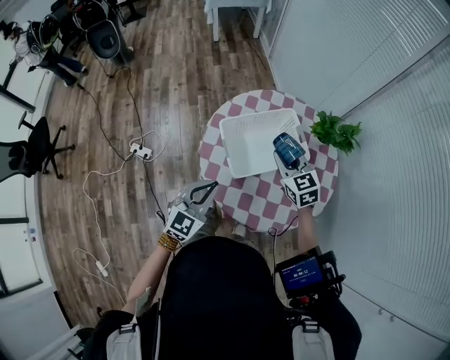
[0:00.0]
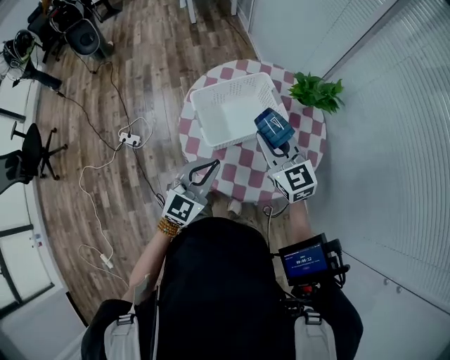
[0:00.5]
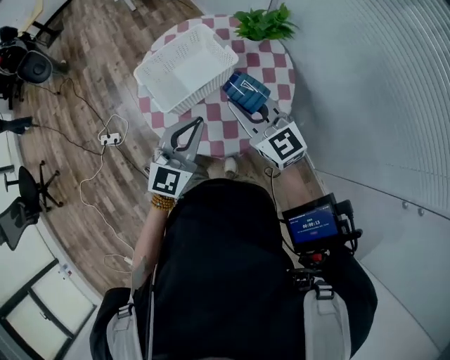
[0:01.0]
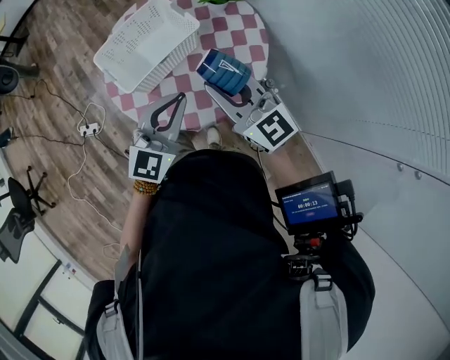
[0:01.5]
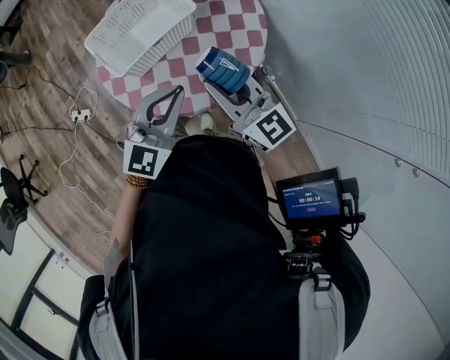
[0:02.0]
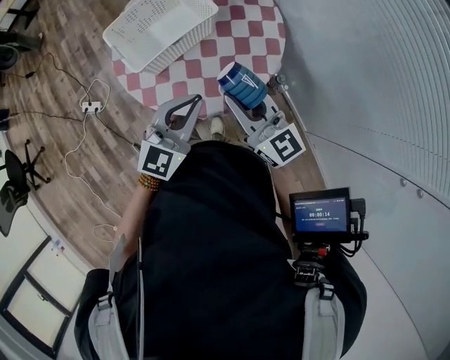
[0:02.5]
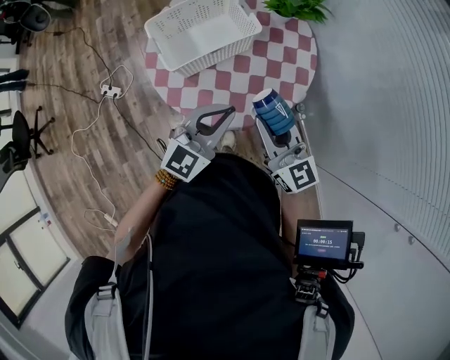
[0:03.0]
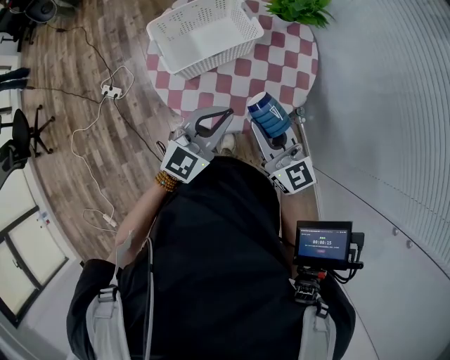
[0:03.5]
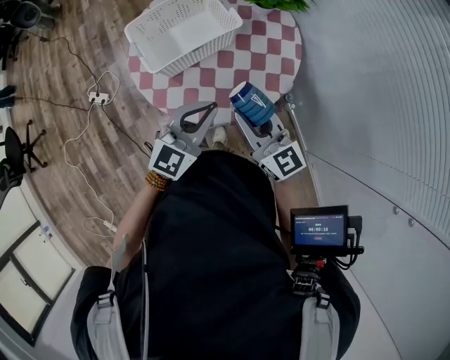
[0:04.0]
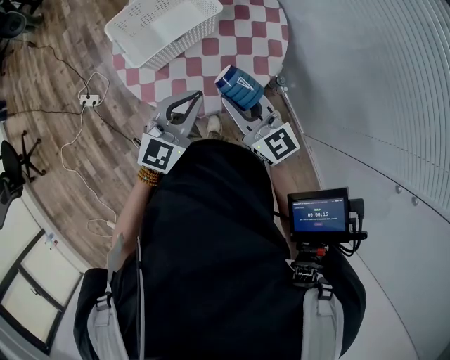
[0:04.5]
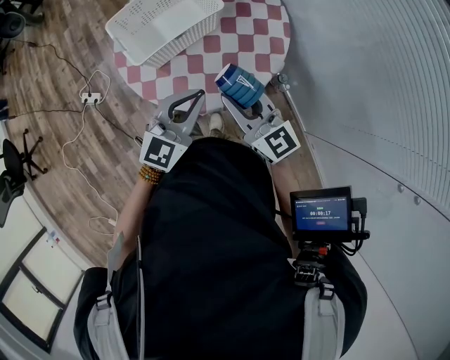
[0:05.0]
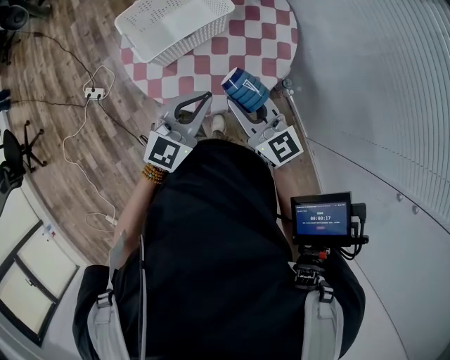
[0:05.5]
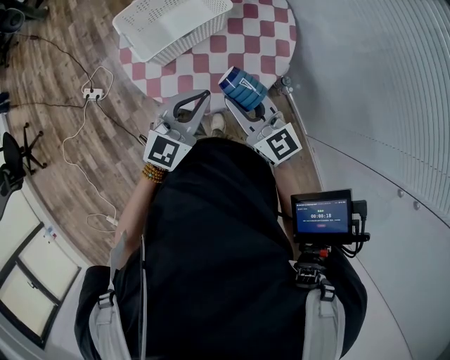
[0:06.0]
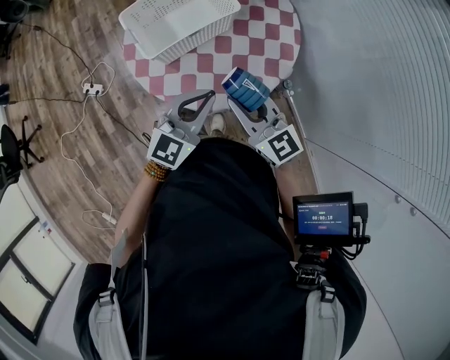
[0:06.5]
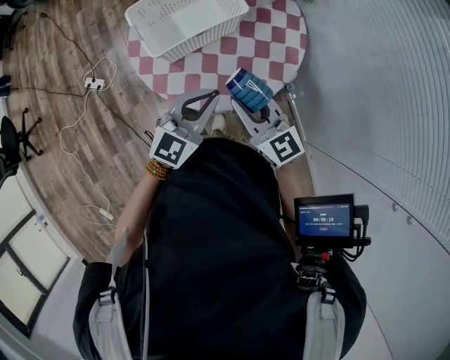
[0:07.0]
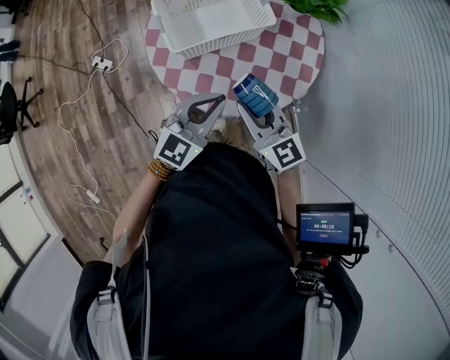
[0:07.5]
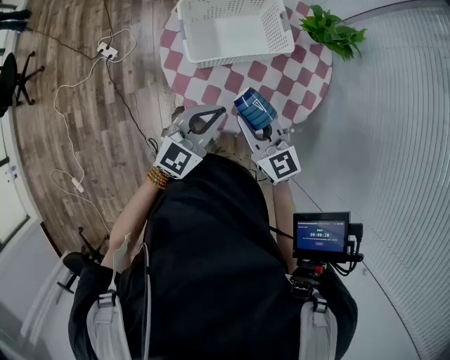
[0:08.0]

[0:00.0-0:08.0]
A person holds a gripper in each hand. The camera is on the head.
0:00.0 to 0:02.0: The left gripper goes approximately 25 cm to the right, and swivels about 20 degrees; the right gripper moves backward and to the right, some 30 cm, and swivels approximately 30 degrees.
0:02.0 to 0:06.0: The grippers move only a little.
0:06.0 to 0:08.0: The grippers both shift to the left by some 10 cm.

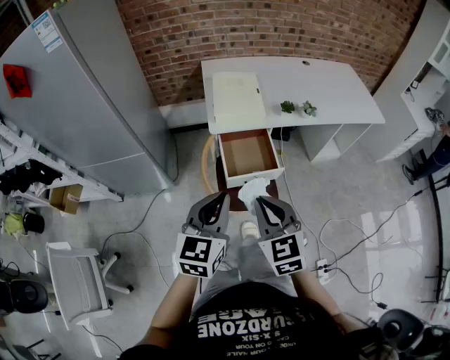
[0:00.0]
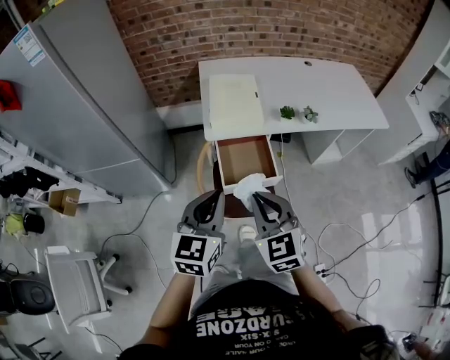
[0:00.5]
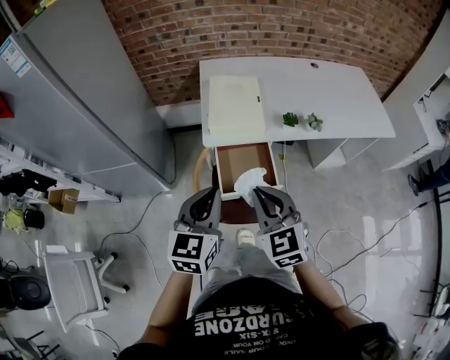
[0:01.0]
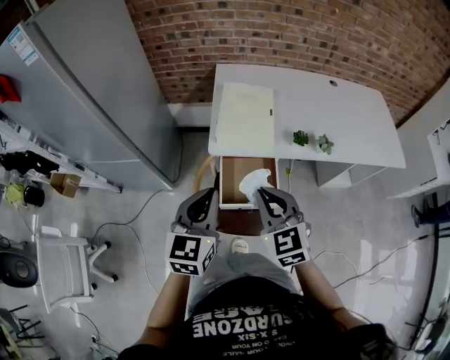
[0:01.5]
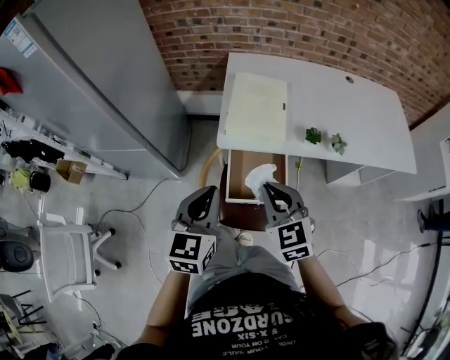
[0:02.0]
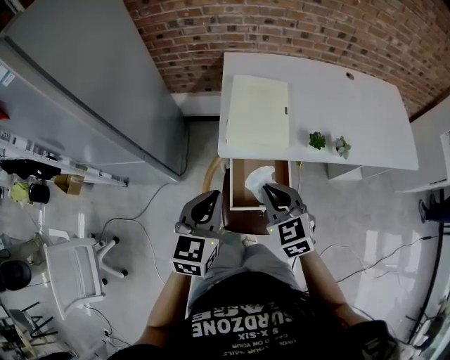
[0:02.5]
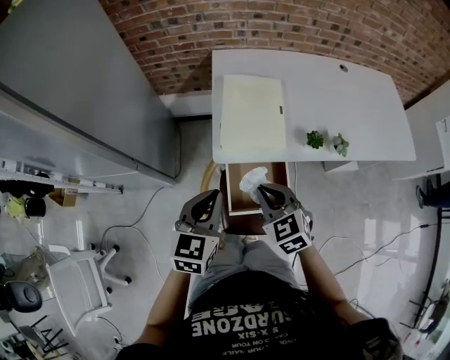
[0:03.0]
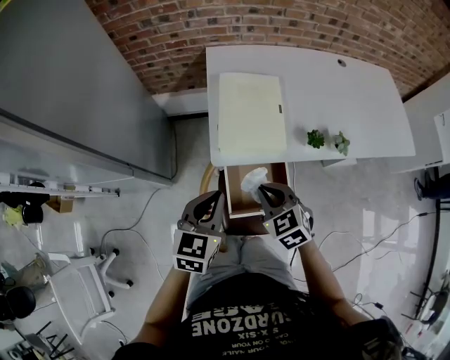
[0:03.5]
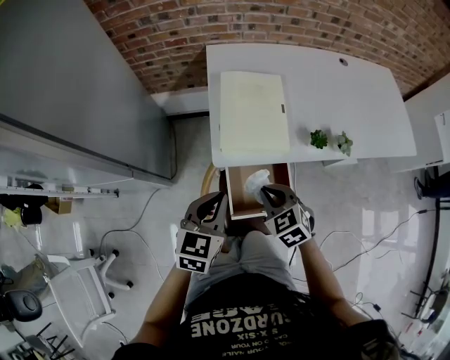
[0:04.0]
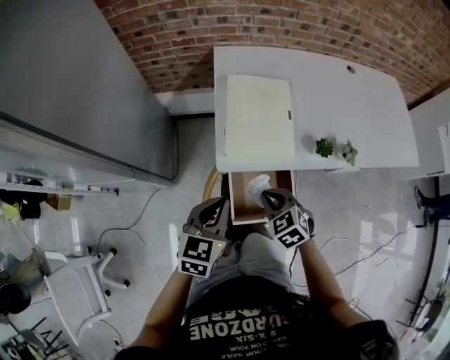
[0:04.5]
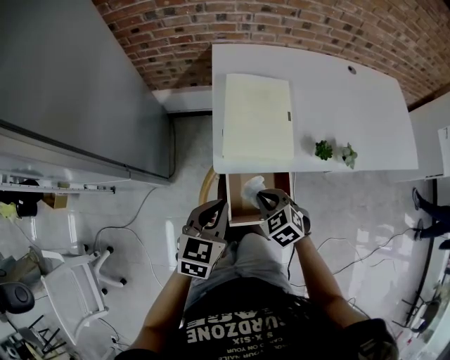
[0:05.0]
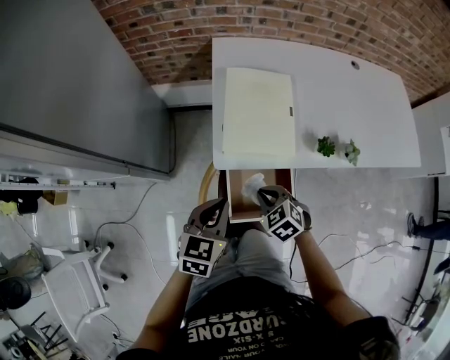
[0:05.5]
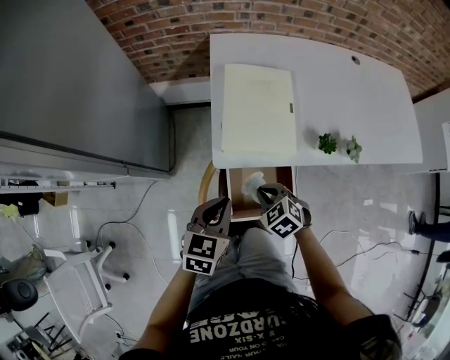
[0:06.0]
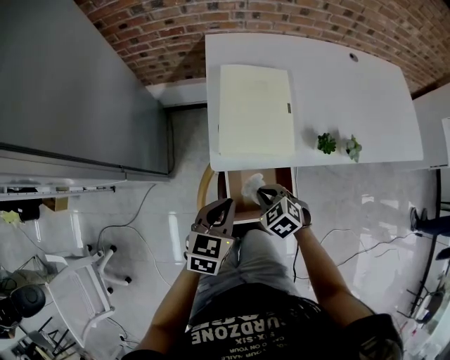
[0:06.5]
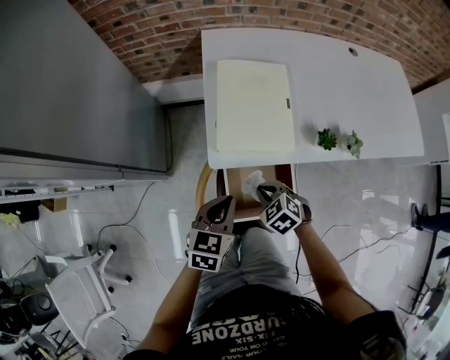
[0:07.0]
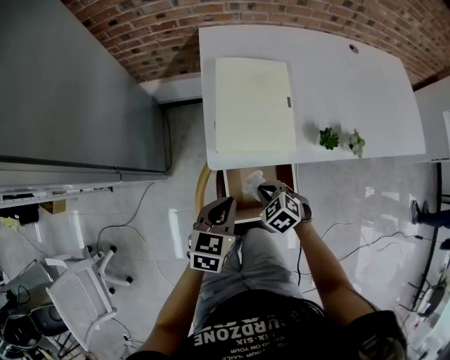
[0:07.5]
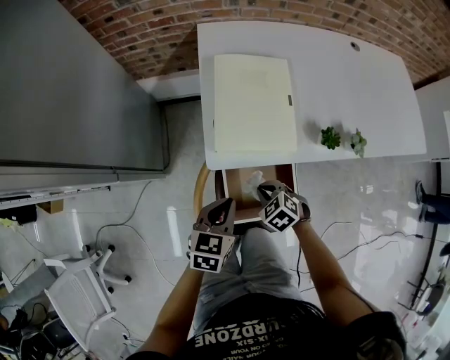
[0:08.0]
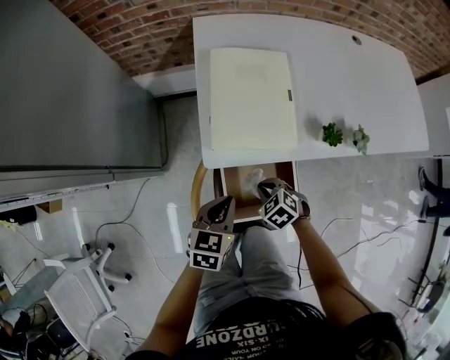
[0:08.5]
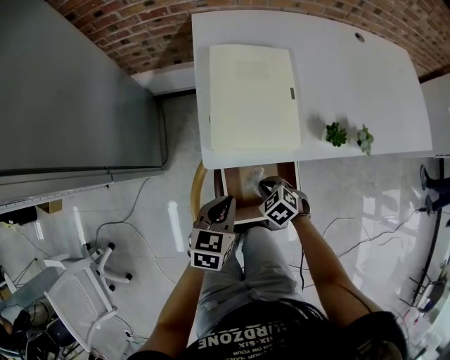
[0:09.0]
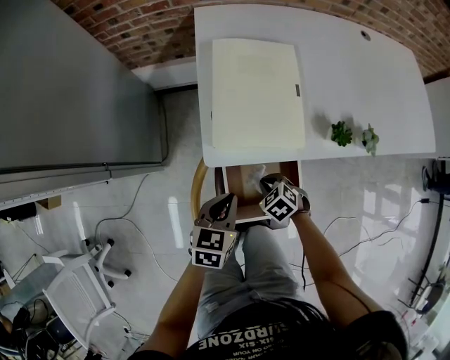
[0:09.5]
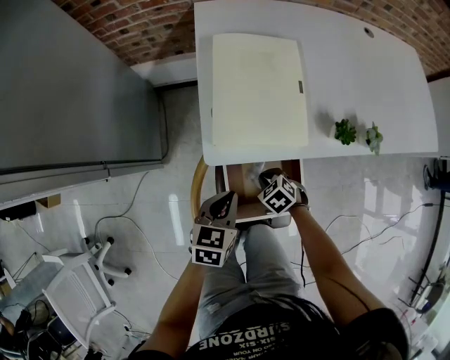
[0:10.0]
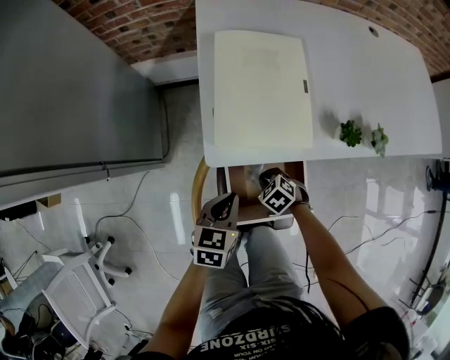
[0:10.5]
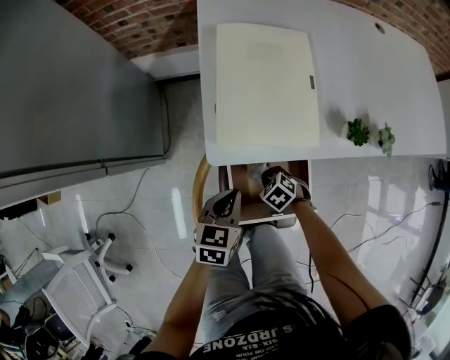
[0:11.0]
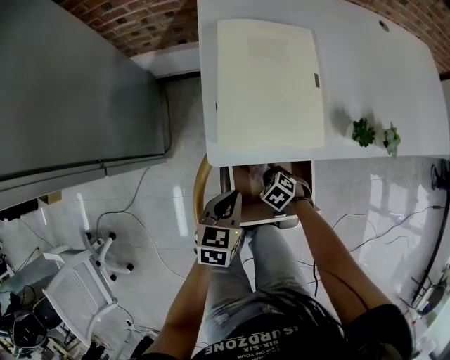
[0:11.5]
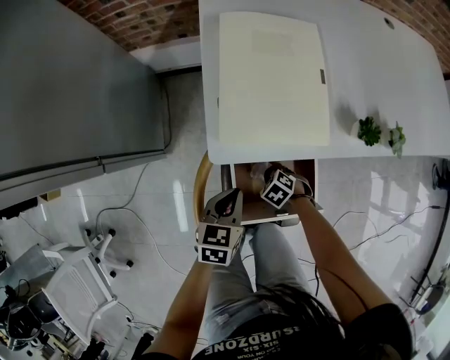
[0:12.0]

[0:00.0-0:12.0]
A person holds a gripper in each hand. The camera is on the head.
0:00.0 to 0:02.0: The two grippers go roughly 20 cm forward.
0:02.0 to 0:04.0: The right gripper shifts approximately 15 cm downward and forward, and swivels approximately 20 degrees, while the left gripper heads forward and downward, covering some 15 cm.
0:04.0 to 0:06.0: The left gripper shifts approximately 5 cm downward, while the right gripper moves downward, approximately 10 cm.
0:06.0 to 0:08.0: Both grippers move downward, about 10 cm.
0:08.0 to 0:10.0: The left gripper travels downward by some 5 cm. Meanwhile the right gripper moves downward, approximately 10 cm.
0:10.0 to 0:12.0: The left gripper shifts roughly 5 cm downward, while the right gripper heads downward, covering approximately 10 cm.

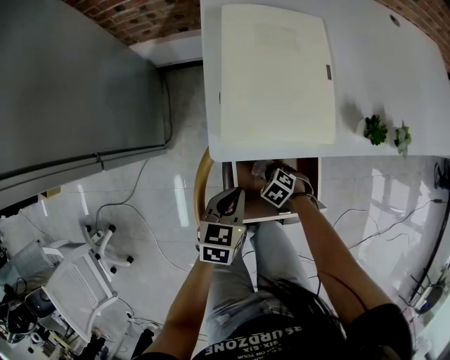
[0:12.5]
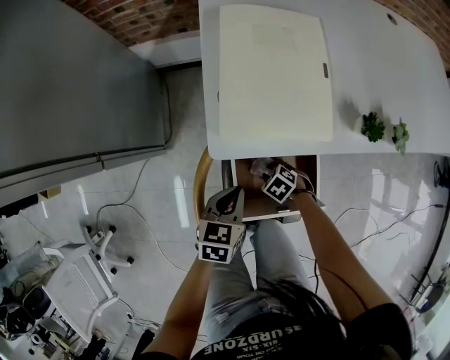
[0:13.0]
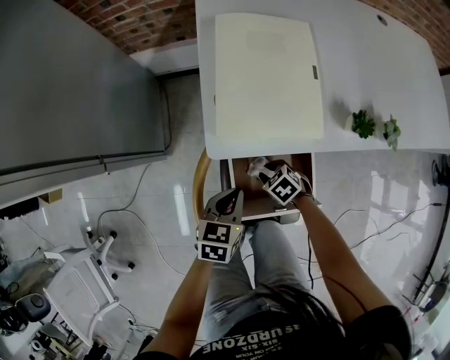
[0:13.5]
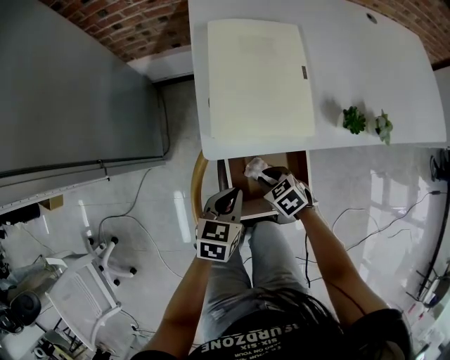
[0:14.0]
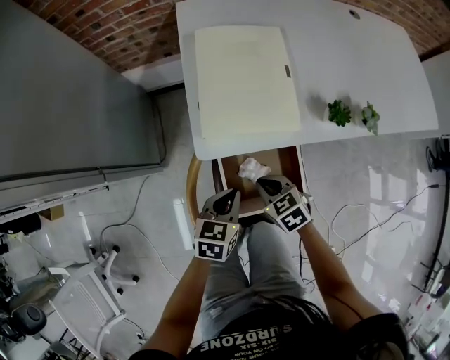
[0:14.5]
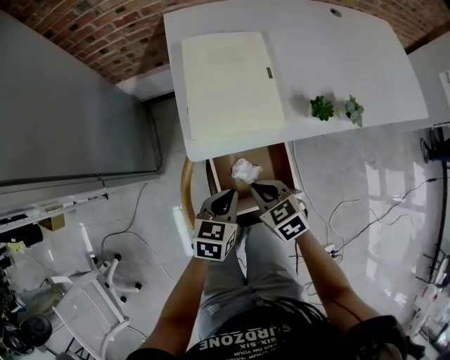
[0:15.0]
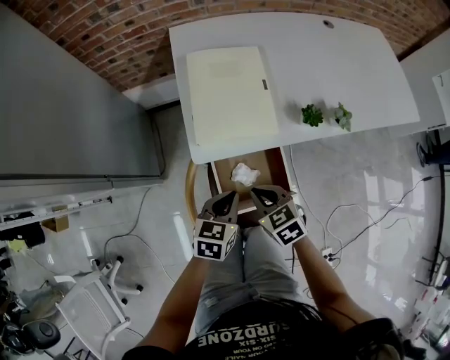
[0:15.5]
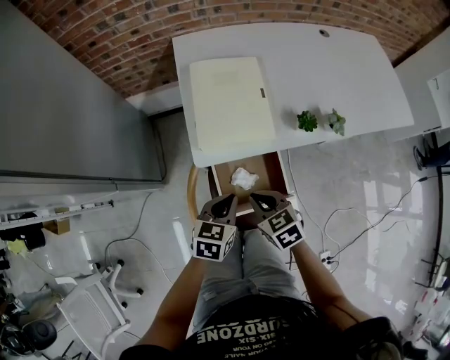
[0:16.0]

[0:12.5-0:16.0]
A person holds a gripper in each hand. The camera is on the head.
0:12.5 to 0:14.5: The right gripper goes some 20 cm upward, and turns by roughly 30 degrees, while the left gripper shifts by some 5 cm.
0:14.5 to 0:16.0: The two grippers go approximately 10 cm upward.

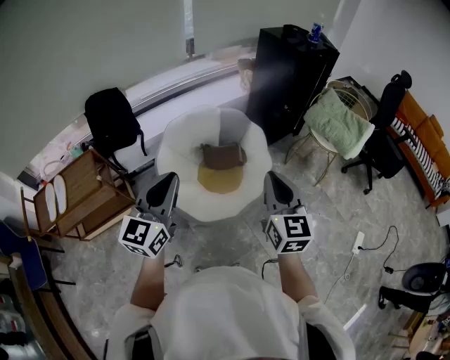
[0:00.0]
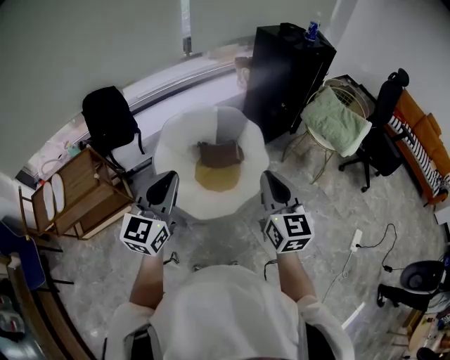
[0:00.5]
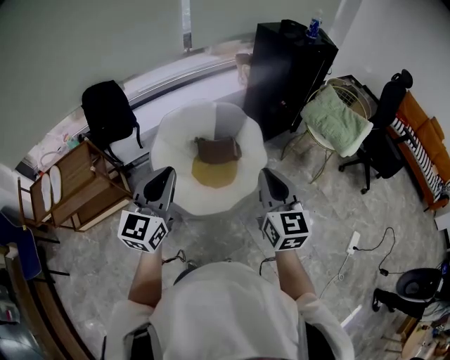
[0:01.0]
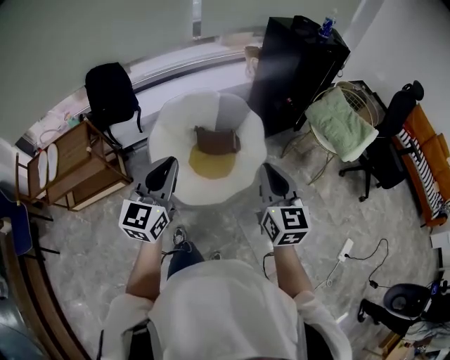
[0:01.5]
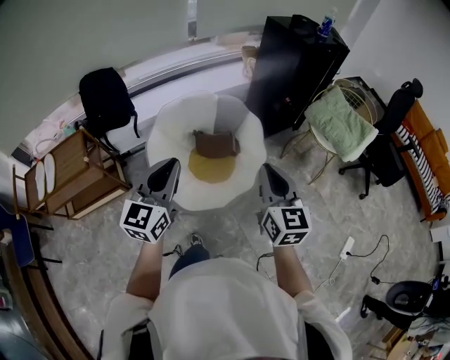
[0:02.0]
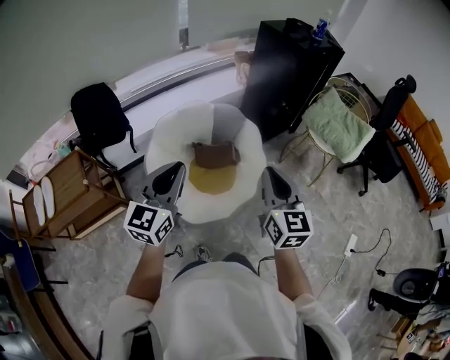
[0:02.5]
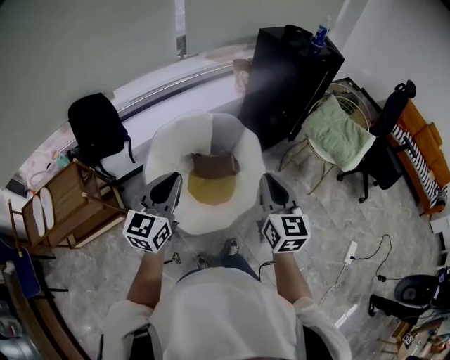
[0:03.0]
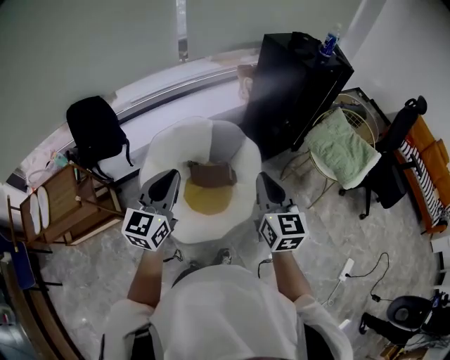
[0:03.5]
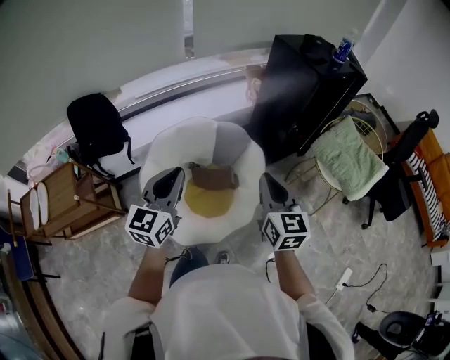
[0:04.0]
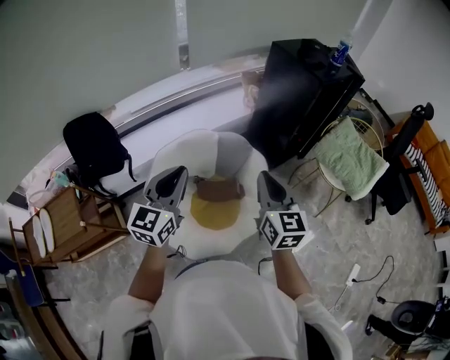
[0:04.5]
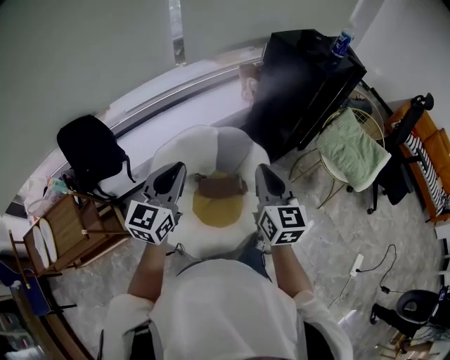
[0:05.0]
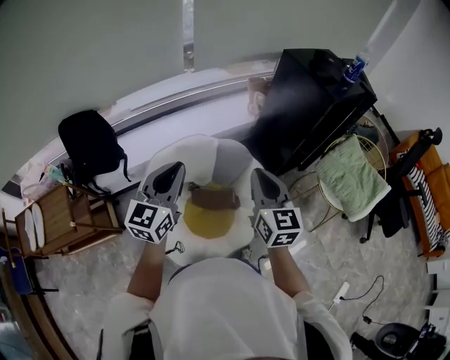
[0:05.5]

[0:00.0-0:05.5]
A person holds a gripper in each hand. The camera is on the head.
0:00.0 to 0:02.0: The left gripper travels to the right by approximately 5 cm. Meanwhile the right gripper moves roughly 5 cm.
0:02.0 to 0:03.5: The two grippers go approximately 15 cm forward.
0:03.5 to 0:05.5: The grippers both shift forward by approximately 20 cm.
